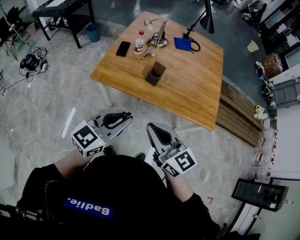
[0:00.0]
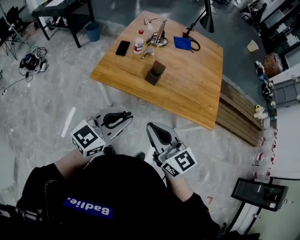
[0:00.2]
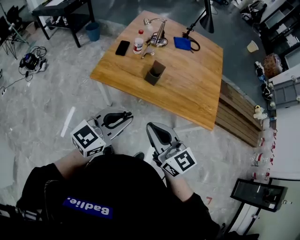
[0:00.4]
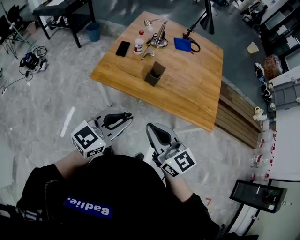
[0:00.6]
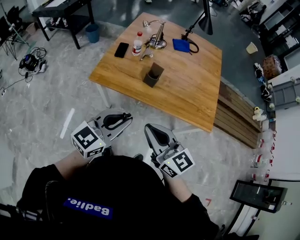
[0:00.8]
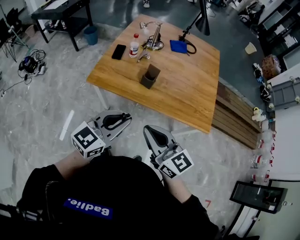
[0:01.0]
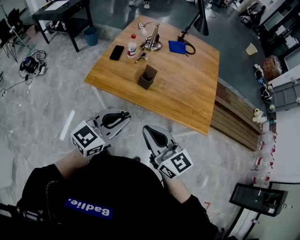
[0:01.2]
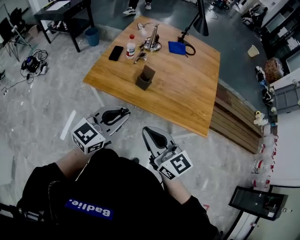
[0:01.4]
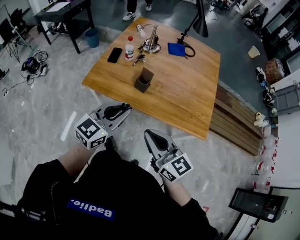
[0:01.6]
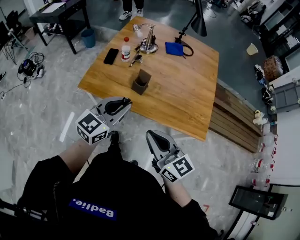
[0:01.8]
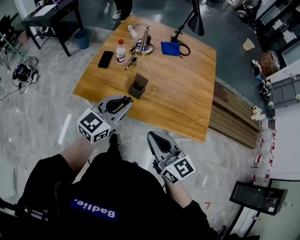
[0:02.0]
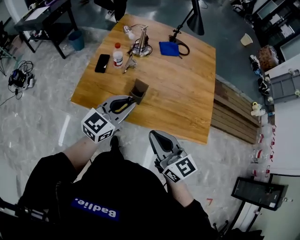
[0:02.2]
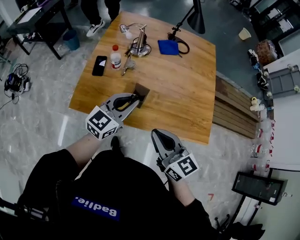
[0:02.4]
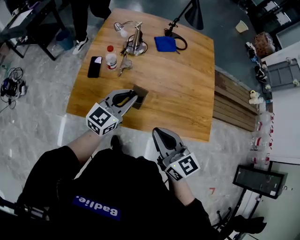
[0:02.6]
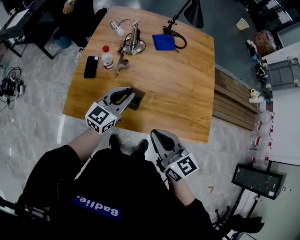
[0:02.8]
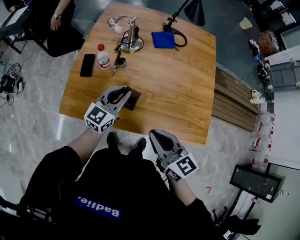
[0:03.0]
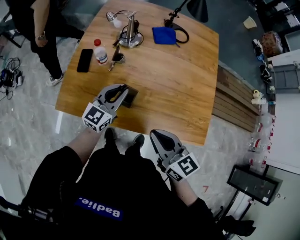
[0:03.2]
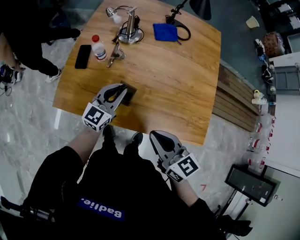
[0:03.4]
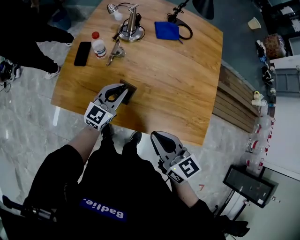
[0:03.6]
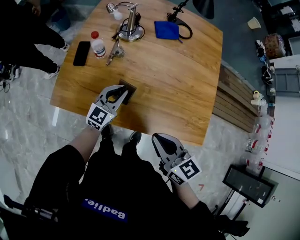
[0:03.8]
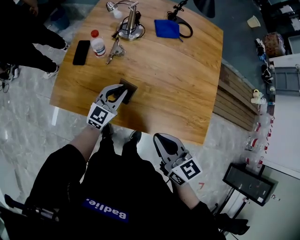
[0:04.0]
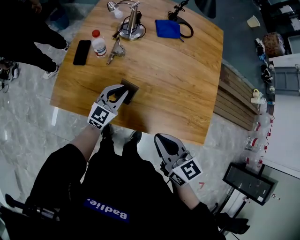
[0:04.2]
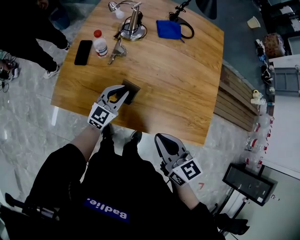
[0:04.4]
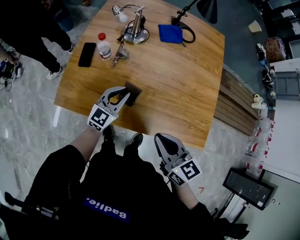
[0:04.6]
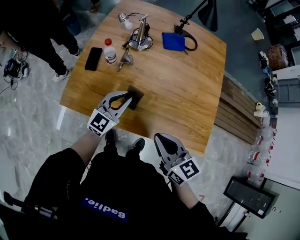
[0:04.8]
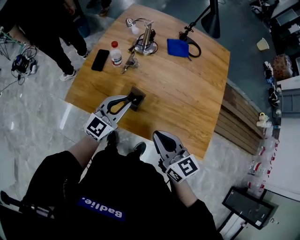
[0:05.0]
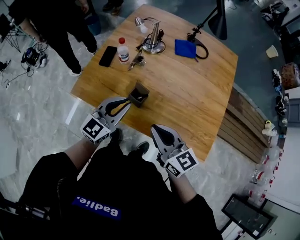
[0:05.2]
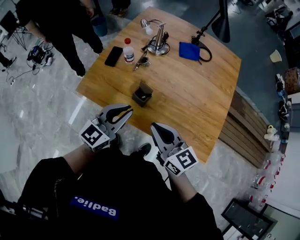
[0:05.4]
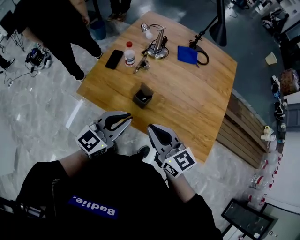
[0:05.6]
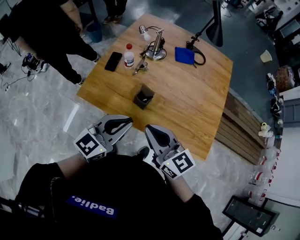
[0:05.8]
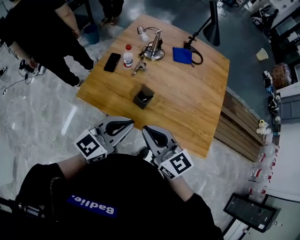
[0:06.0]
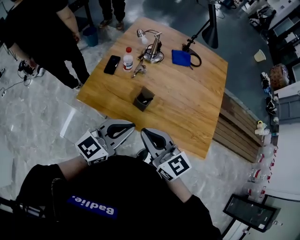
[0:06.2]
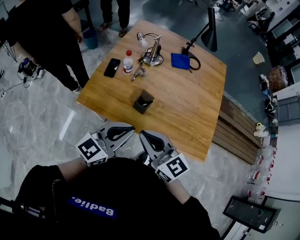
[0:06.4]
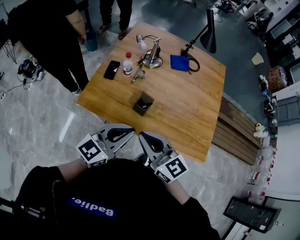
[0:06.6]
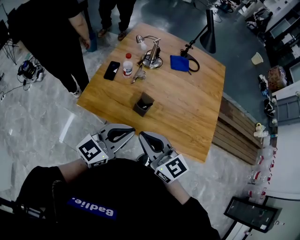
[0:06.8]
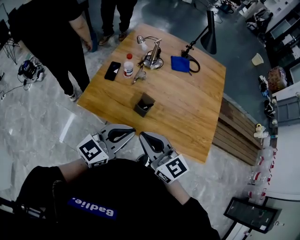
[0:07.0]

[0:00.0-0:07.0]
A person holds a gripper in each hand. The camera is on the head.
0:00.0 to 0:01.4: Both grippers travel together to the right, roughly 5 cm.
0:01.4 to 0:02.8: Both grippers move forward, approximately 25 cm.
0:02.8 to 0:04.2: The left gripper shifts about 15 cm downward, while the right gripper moves to the right and downward, some 10 cm.
0:04.2 to 0:05.6: The left gripper heads upward and backward, covering about 25 cm, while the right gripper heads upward, covering about 5 cm, and changes its angle by some 20 degrees.
0:05.6 to 0:07.0: The left gripper changes place by some 5 cm. Meanwhile the right gripper goes about 5 cm to the left.

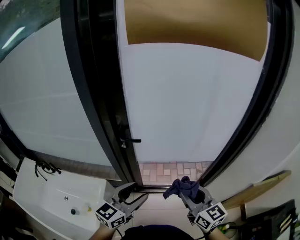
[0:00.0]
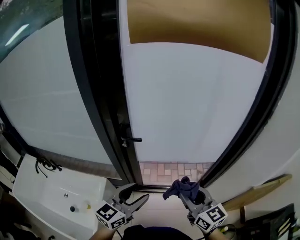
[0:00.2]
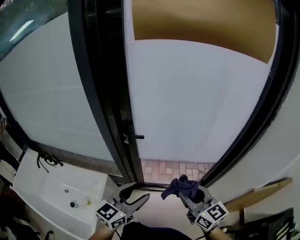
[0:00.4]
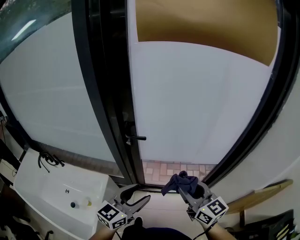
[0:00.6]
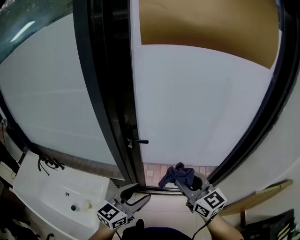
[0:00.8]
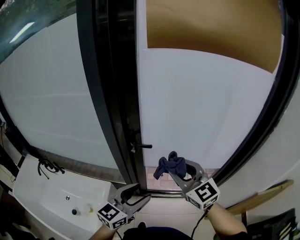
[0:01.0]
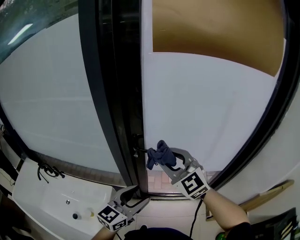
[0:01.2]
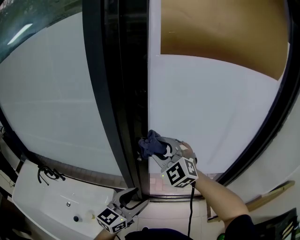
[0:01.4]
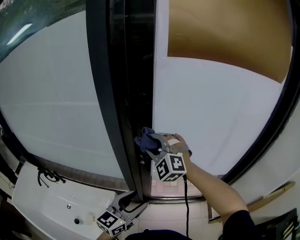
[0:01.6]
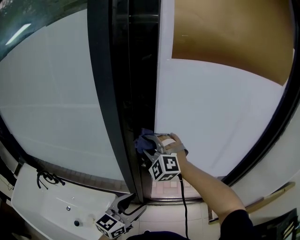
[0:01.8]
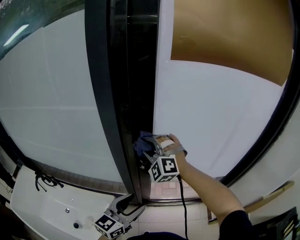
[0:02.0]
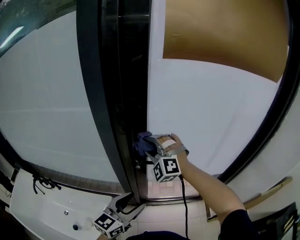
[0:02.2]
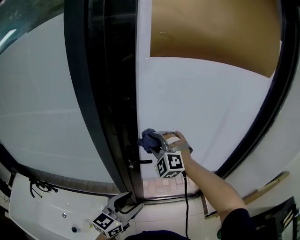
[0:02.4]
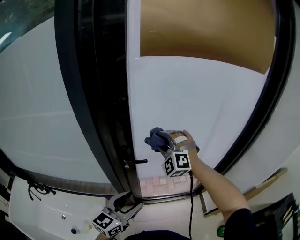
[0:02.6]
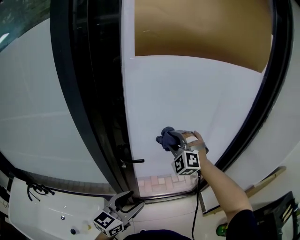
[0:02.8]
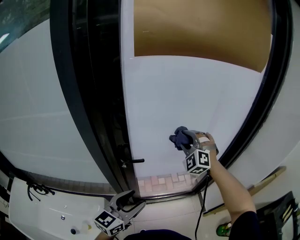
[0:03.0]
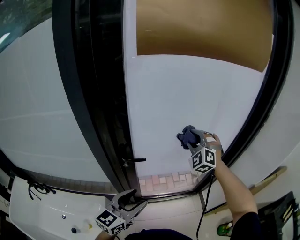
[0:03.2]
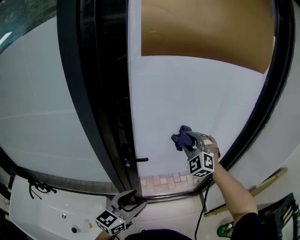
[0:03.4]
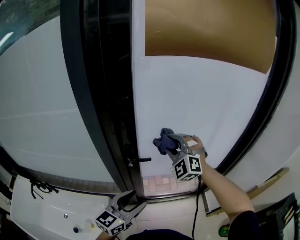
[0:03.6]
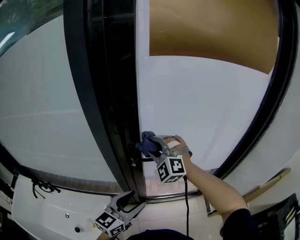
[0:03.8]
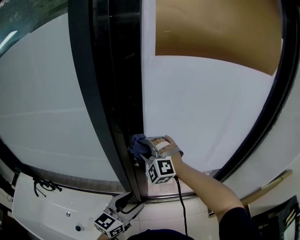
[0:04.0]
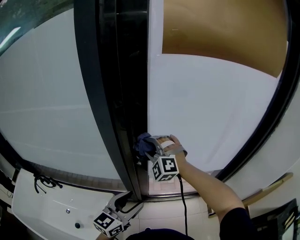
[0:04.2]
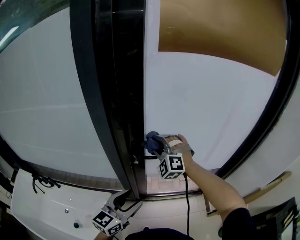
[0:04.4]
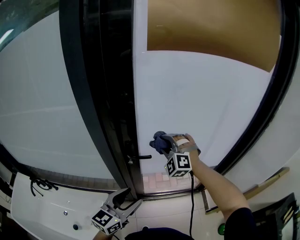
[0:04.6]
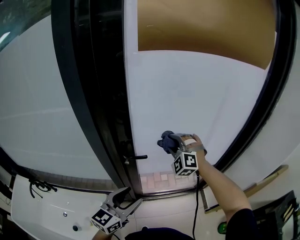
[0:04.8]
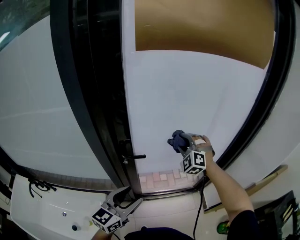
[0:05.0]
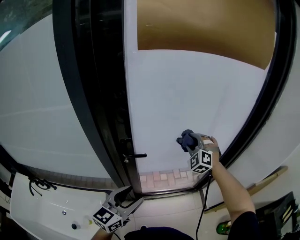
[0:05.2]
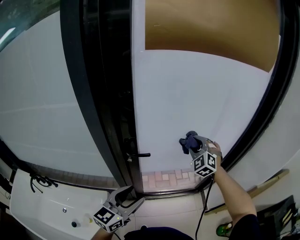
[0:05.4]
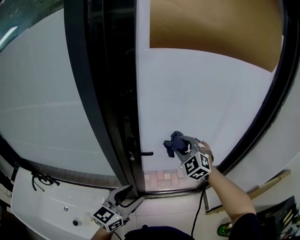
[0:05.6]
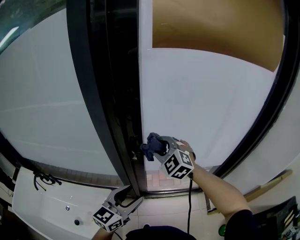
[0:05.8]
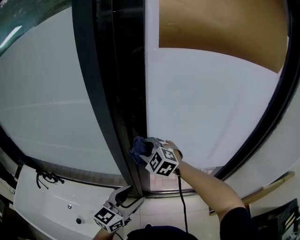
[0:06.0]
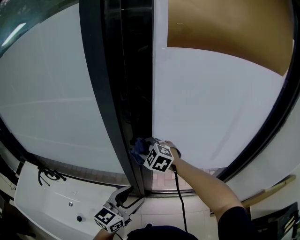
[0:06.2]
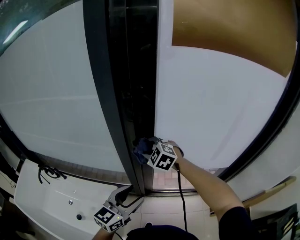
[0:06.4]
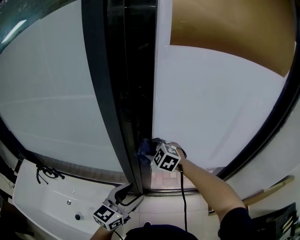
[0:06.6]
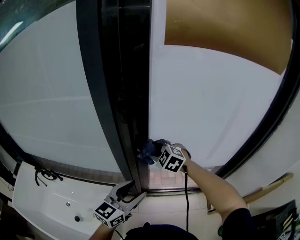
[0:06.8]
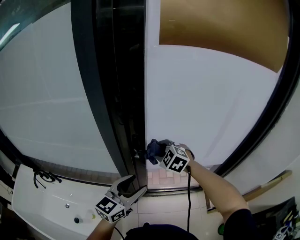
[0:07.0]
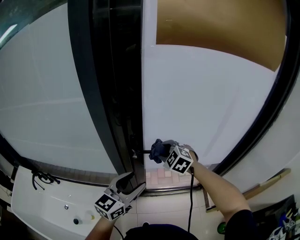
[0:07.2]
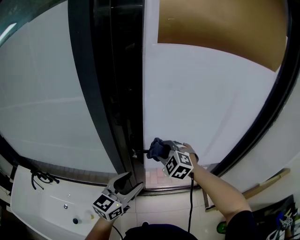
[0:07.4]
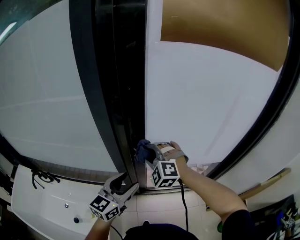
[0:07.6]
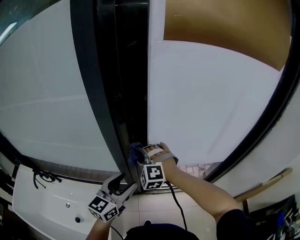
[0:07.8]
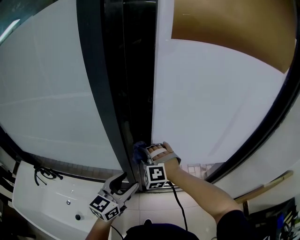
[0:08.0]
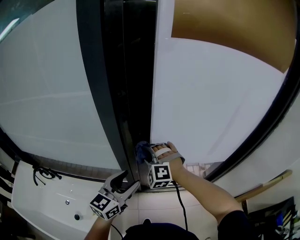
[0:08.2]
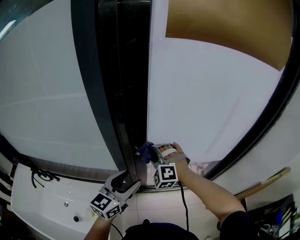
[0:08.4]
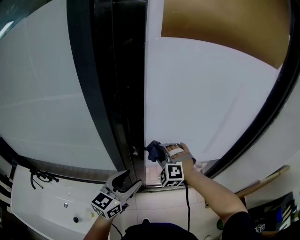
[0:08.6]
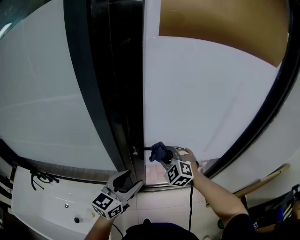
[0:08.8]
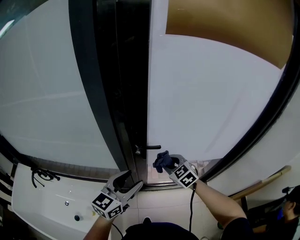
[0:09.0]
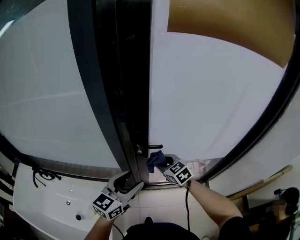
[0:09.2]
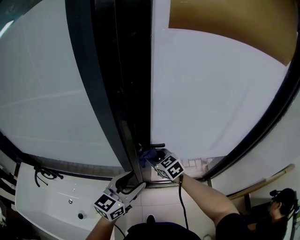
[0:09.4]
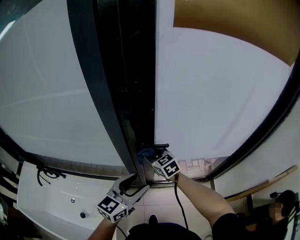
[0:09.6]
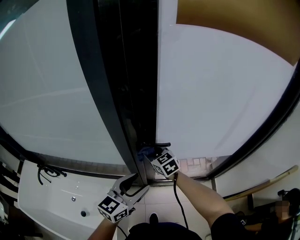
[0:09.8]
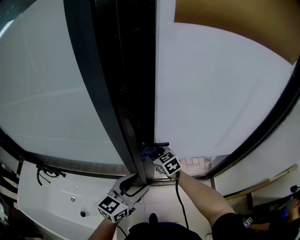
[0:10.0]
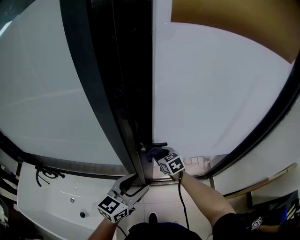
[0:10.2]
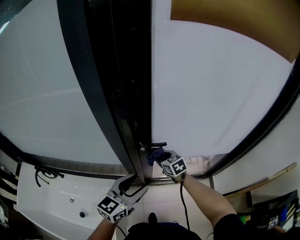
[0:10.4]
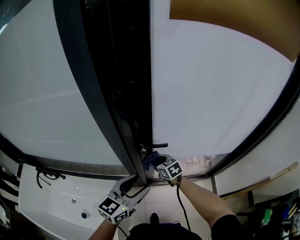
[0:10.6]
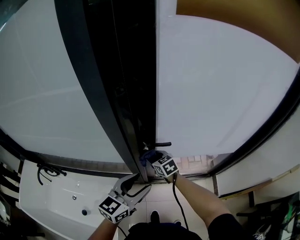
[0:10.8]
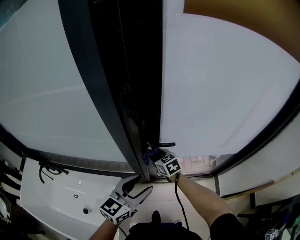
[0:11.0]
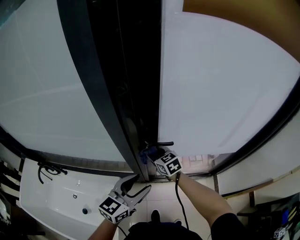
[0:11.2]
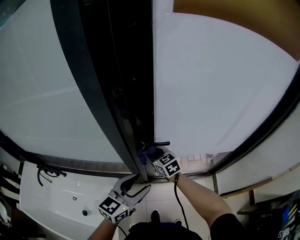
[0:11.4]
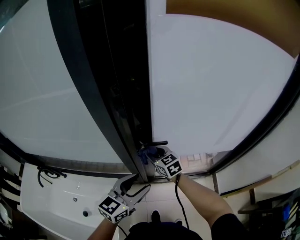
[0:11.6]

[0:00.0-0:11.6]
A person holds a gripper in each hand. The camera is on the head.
0:00.0 to 0:01.4: The right gripper is displaced to the left, forward and upward by about 30 cm, and rotates around the line of its fingers by about 60 degrees, counterclockwise from behind; the left gripper moves to the left, approximately 10 cm.
0:01.4 to 0:02.8: The right gripper is displaced to the right and forward by about 20 cm, and changes its angle by about 30 degrees.
0:02.8 to 0:04.4: The left gripper moves to the left, approximately 5 cm. The right gripper goes left and right, roughly 25 cm each way, reversing 2 times.
0:04.4 to 0:05.8: The right gripper reaches some 20 cm to the right, then returns, and changes its angle by approximately 30 degrees.
0:05.8 to 0:07.2: The right gripper moves downward, about 10 cm, and reaches approximately 10 cm to the left, then returns.
0:07.2 to 0:08.8: The right gripper reaches roughly 10 cm to the left, then returns.
0:08.8 to 0:10.2: The right gripper moves downward and to the left, about 10 cm, and twists some 50 degrees clockwise, seen from behind.

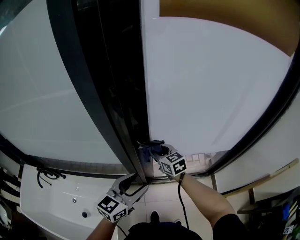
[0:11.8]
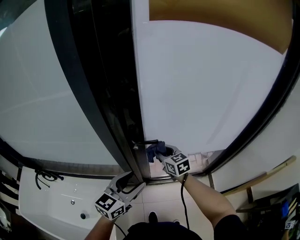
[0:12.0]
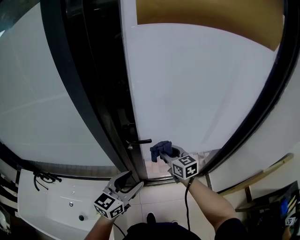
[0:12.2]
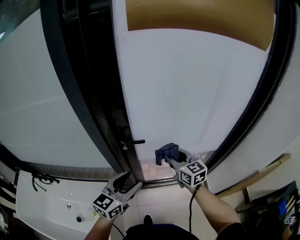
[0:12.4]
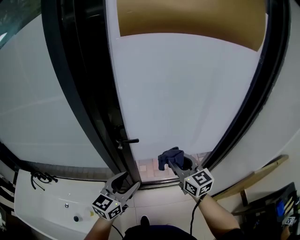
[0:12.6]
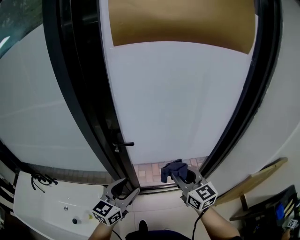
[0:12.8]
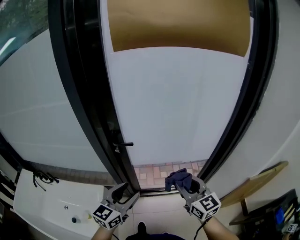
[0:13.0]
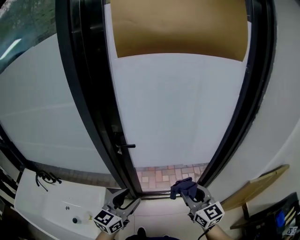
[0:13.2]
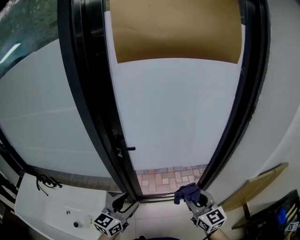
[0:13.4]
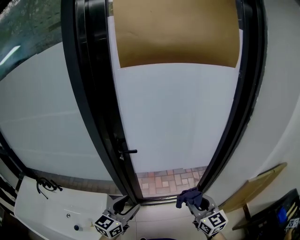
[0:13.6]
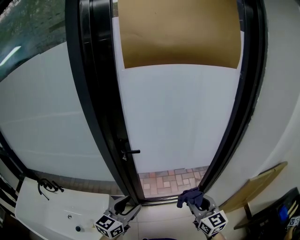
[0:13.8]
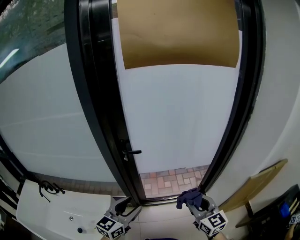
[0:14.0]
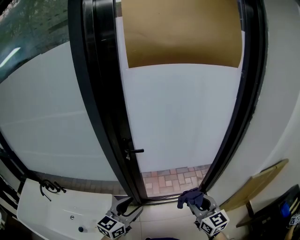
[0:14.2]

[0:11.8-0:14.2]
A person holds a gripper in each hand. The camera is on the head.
0:11.8 to 0:13.0: The right gripper shifts about 40 cm to the right, backward and upward, and rotates approximately 20 degrees. The left gripper moves to the right and backward, about 15 cm.
0:13.0 to 0:14.2: Both grippers travel together backward, roughly 10 cm.

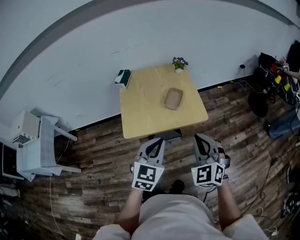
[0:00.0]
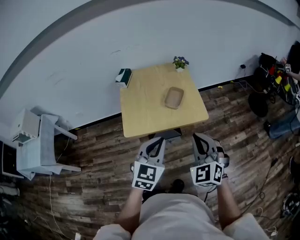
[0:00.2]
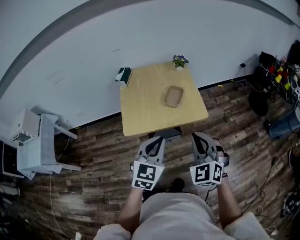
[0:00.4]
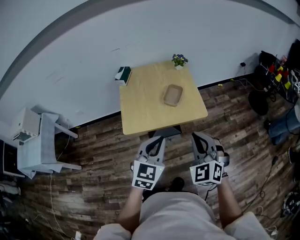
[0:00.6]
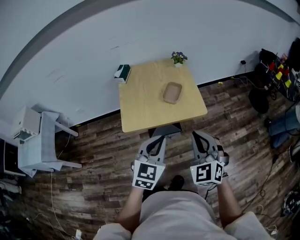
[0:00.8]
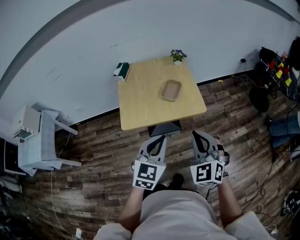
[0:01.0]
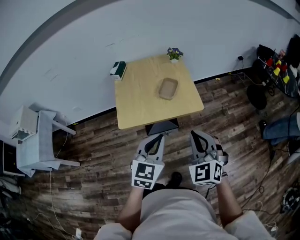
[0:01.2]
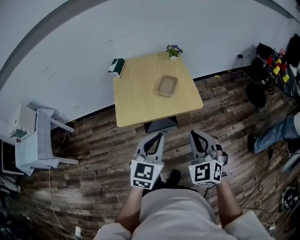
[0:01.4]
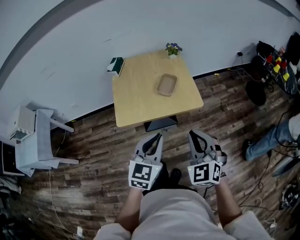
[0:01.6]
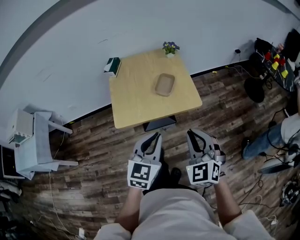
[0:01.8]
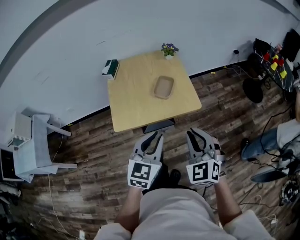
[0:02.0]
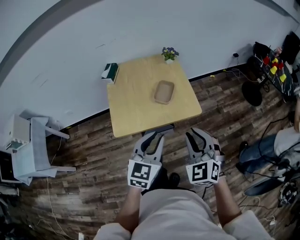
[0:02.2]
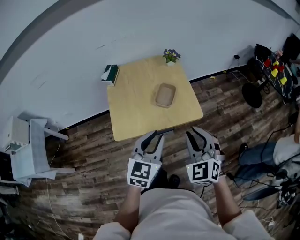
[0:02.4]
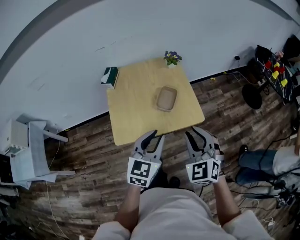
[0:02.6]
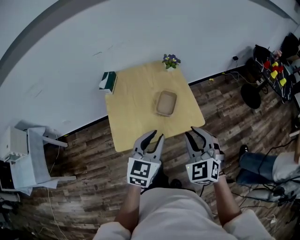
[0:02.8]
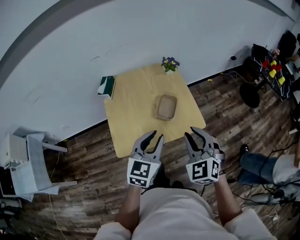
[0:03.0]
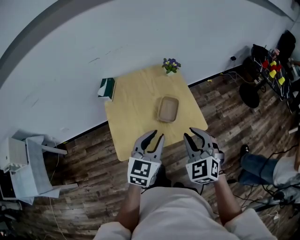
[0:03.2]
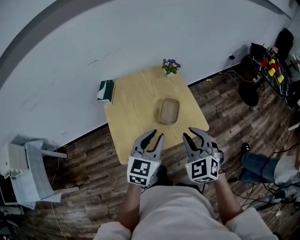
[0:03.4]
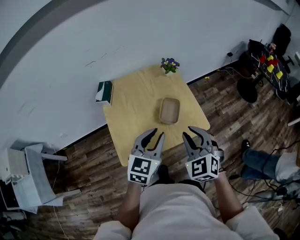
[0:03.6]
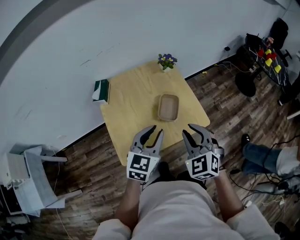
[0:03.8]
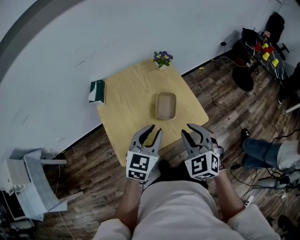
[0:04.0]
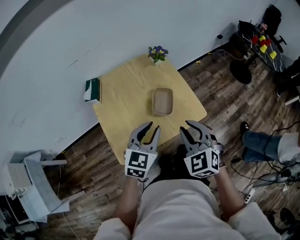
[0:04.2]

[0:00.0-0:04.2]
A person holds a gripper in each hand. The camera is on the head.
0:00.0 to 0:01.4: The grippers make only small movements.
0:01.4 to 0:02.8: The two grippers go some 15 cm forward. The right gripper opens.
0:02.8 to 0:04.2: The right gripper goes roughly 5 cm forward, while the left gripper moves forward, about 10 cm.
